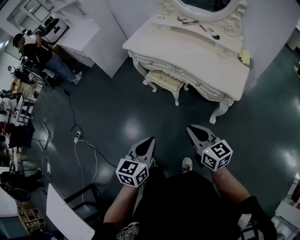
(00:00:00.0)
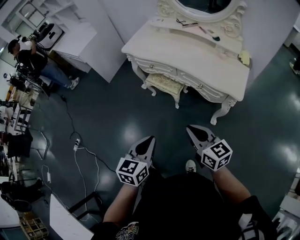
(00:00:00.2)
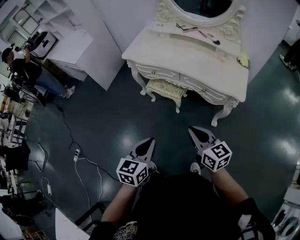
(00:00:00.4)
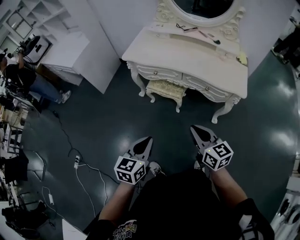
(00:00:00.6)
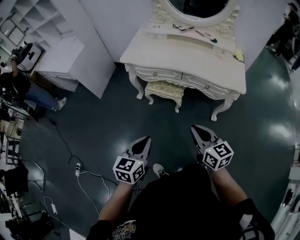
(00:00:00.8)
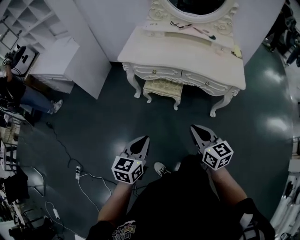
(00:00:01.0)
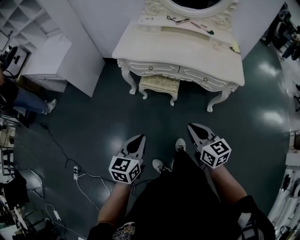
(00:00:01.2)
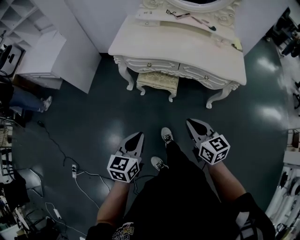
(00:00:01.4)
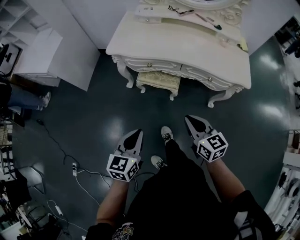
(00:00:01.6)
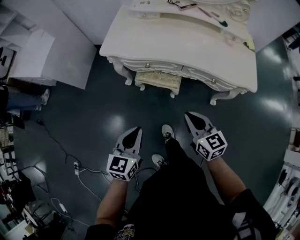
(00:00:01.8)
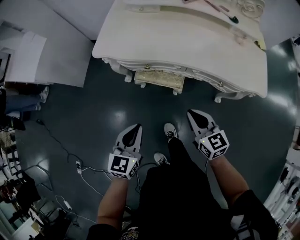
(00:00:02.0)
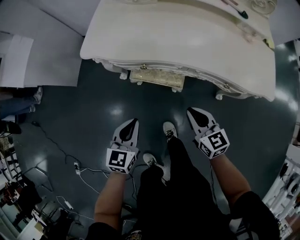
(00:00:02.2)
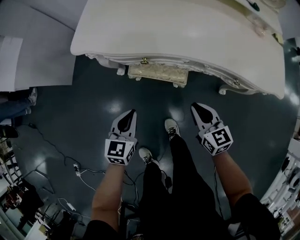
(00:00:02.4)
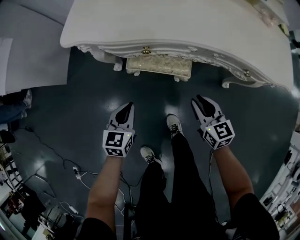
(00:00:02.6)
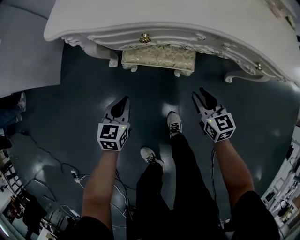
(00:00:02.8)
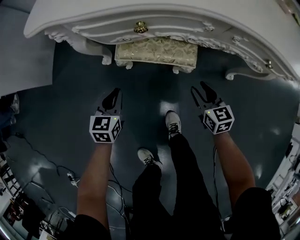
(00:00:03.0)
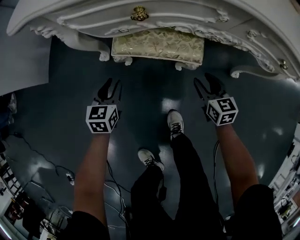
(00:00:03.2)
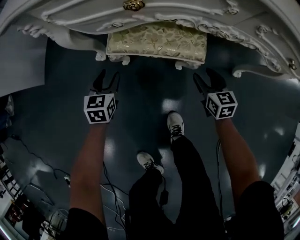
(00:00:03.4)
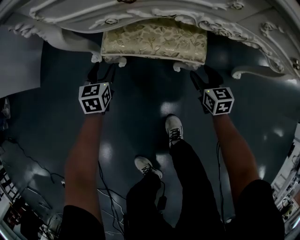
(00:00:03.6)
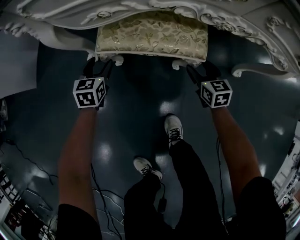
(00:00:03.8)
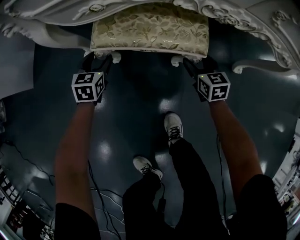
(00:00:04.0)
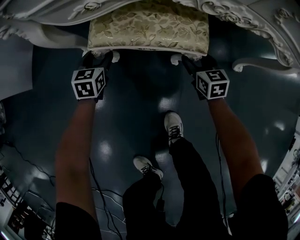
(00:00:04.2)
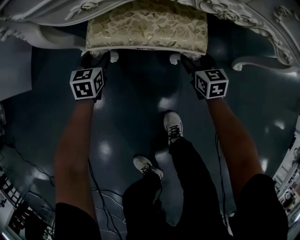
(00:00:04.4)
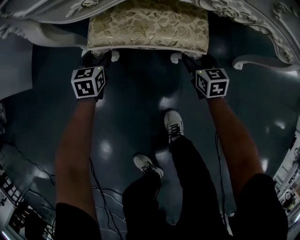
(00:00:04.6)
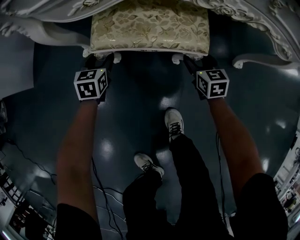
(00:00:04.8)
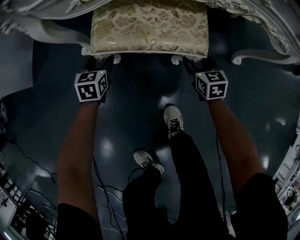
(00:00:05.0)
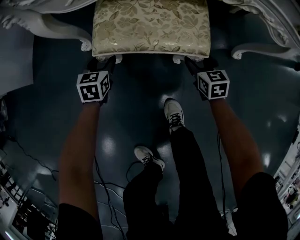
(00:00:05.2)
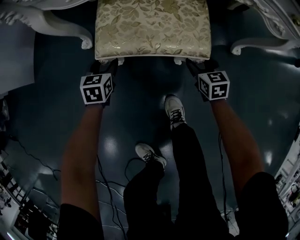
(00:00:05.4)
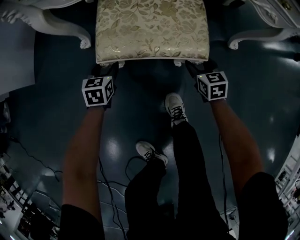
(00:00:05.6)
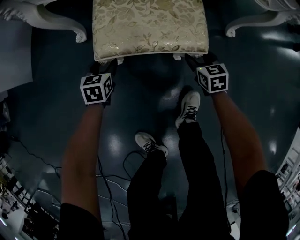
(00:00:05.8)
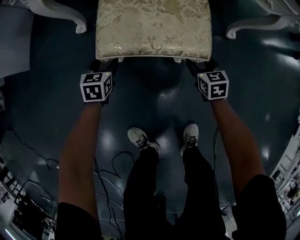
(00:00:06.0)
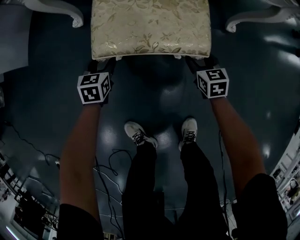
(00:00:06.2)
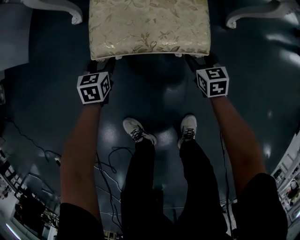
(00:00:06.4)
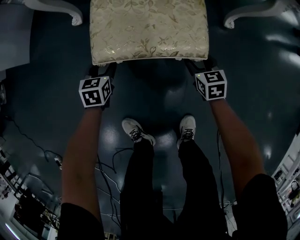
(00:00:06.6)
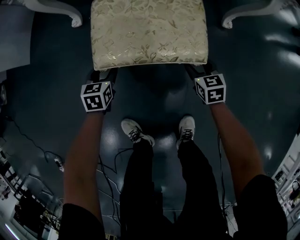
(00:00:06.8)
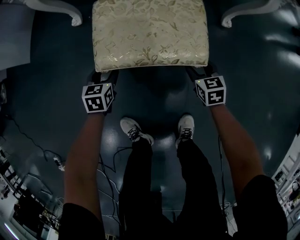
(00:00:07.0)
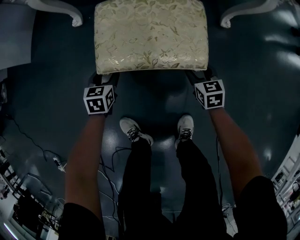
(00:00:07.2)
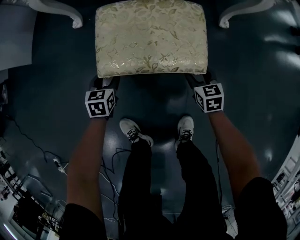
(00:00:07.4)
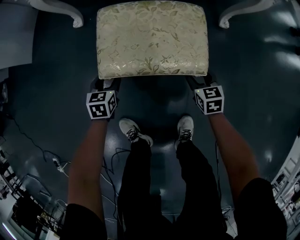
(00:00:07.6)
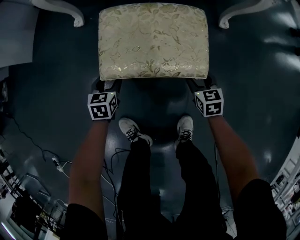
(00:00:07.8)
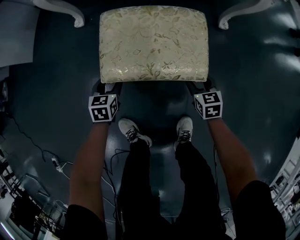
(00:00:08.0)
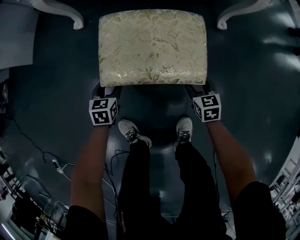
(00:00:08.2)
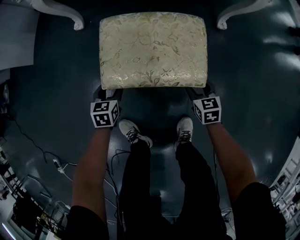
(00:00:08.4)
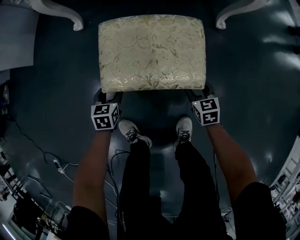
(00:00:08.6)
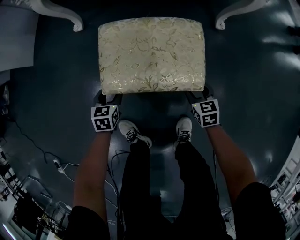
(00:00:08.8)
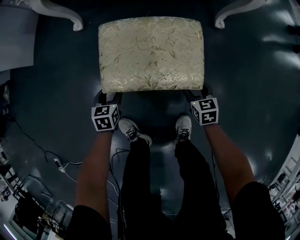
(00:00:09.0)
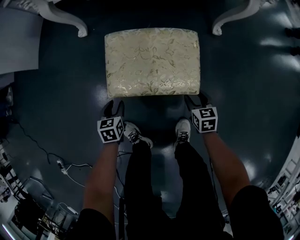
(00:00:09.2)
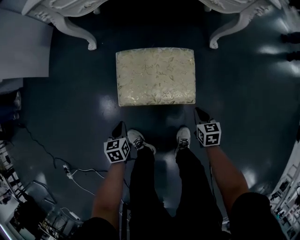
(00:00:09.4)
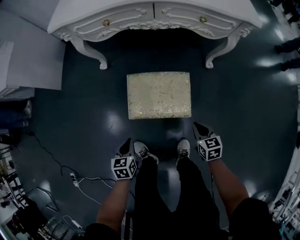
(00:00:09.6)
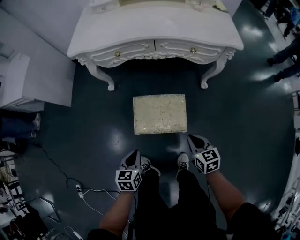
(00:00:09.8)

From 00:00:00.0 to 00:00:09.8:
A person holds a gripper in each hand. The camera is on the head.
From 00:00:00.0 to 00:00:01.4: The right gripper heads to the left, covering some 25 cm, and turns by about 30 degrees. Meanwhile the left gripper travels to the left and forward by some 30 cm.
From 00:00:01.4 to 00:00:02.8: The two grippers go roughly 50 cm downward and forward. The right gripper opens up.
From 00:00:02.8 to 00:00:04.2: The grippers both shift downward and forward by some 30 cm. The right gripper opens, while the left gripper opens its fingers.
From 00:00:04.2 to 00:00:05.6: There are only small adjustments of the grippers.
From 00:00:05.6 to 00:00:07.0: Neither gripper changes place.
From 00:00:07.0 to 00:00:08.4: Both grippers stay put.
From 00:00:08.4 to 00:00:09.8: The two grippers go approximately 40 cm upward. The right gripper closes up; the left gripper closes.

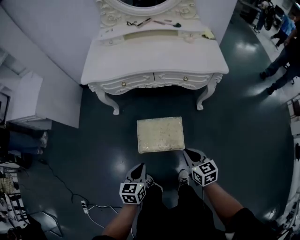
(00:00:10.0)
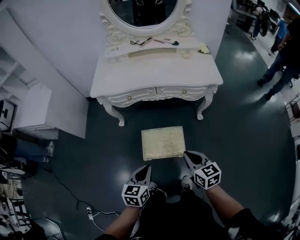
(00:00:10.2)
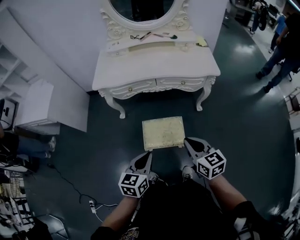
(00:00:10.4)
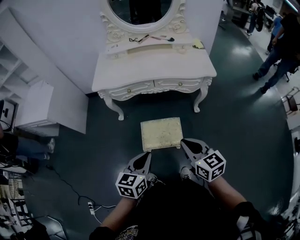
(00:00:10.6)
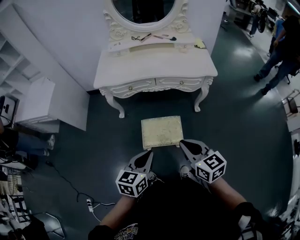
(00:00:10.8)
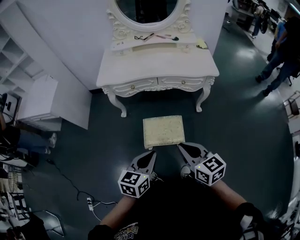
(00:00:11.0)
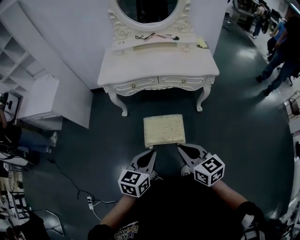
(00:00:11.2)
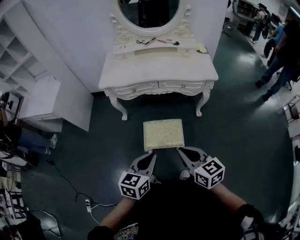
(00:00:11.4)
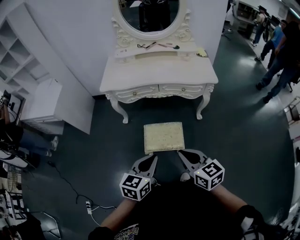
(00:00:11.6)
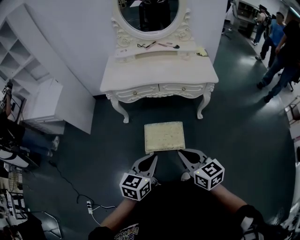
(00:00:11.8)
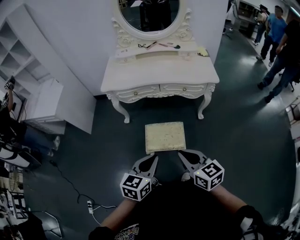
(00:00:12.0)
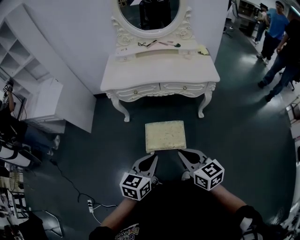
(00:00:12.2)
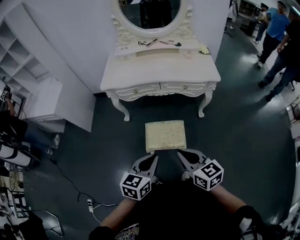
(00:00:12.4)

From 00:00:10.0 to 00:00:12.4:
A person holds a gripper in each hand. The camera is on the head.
From 00:00:10.0 to 00:00:11.2: Both grippers move upward, roughly 25 cm.
From 00:00:11.2 to 00:00:12.4: The grippers move only a little.

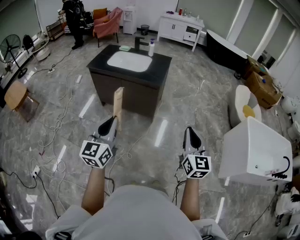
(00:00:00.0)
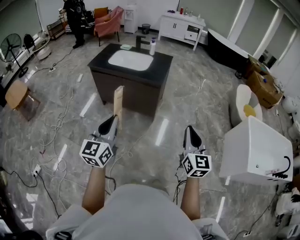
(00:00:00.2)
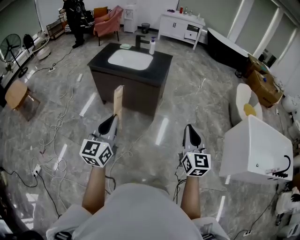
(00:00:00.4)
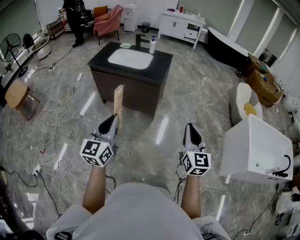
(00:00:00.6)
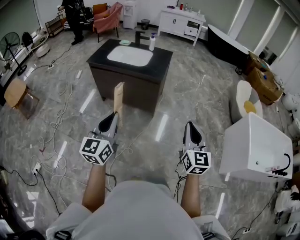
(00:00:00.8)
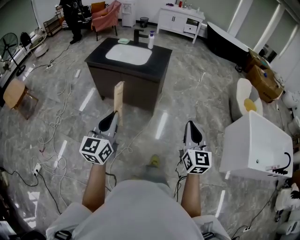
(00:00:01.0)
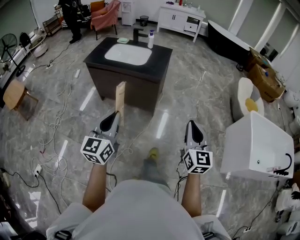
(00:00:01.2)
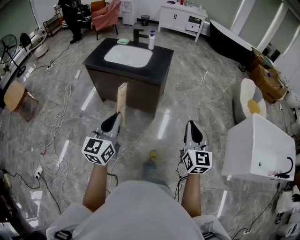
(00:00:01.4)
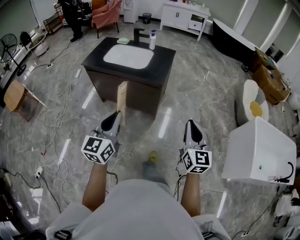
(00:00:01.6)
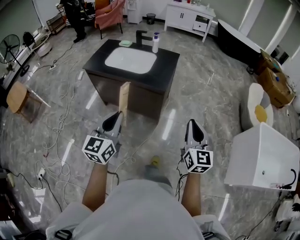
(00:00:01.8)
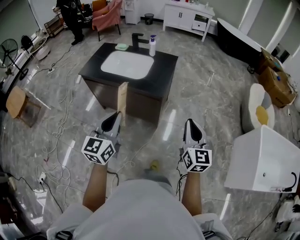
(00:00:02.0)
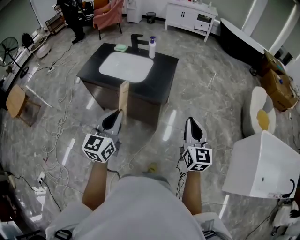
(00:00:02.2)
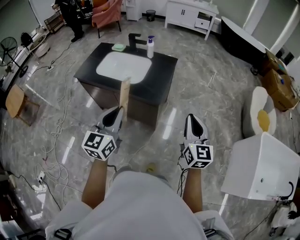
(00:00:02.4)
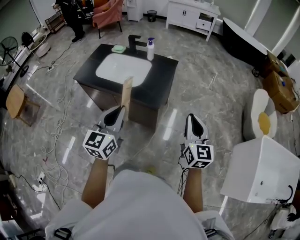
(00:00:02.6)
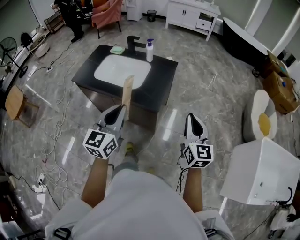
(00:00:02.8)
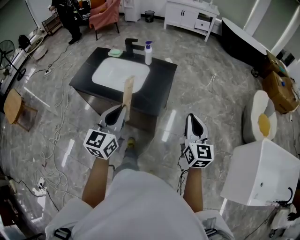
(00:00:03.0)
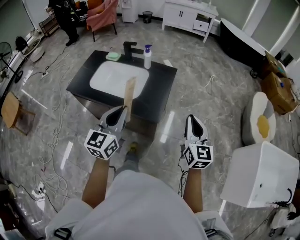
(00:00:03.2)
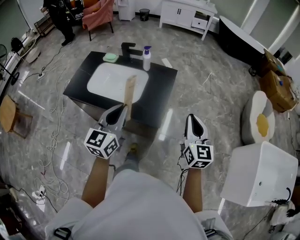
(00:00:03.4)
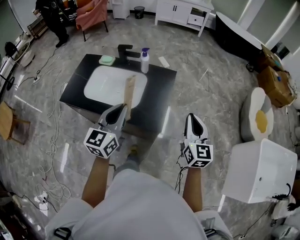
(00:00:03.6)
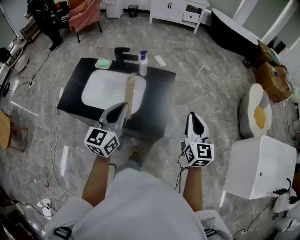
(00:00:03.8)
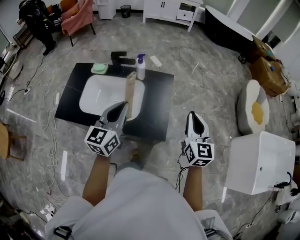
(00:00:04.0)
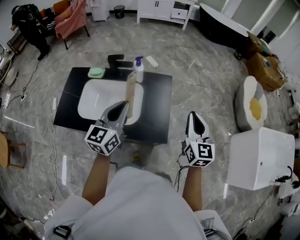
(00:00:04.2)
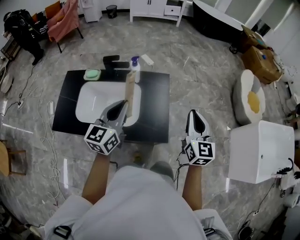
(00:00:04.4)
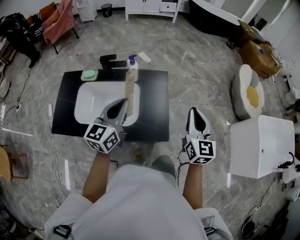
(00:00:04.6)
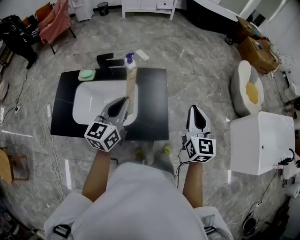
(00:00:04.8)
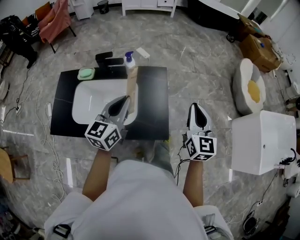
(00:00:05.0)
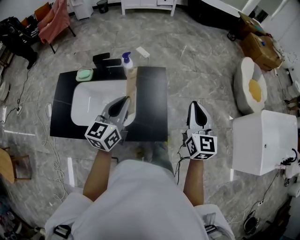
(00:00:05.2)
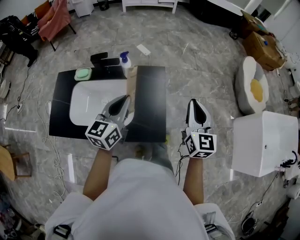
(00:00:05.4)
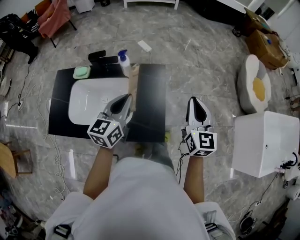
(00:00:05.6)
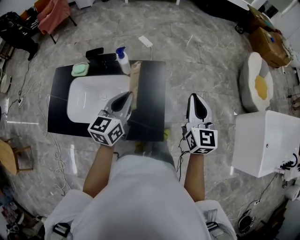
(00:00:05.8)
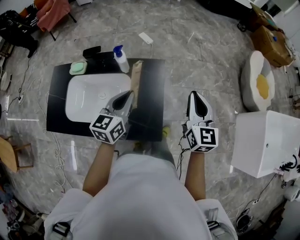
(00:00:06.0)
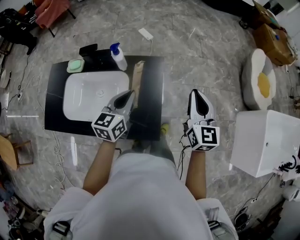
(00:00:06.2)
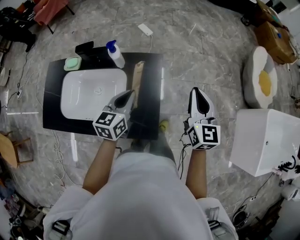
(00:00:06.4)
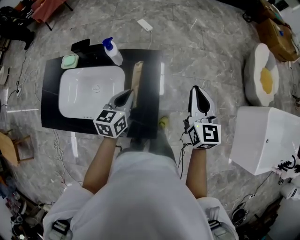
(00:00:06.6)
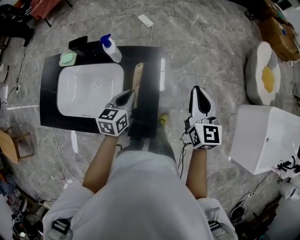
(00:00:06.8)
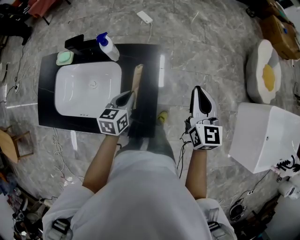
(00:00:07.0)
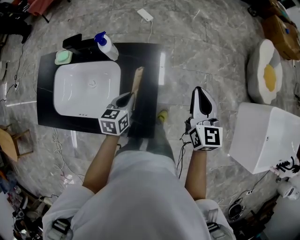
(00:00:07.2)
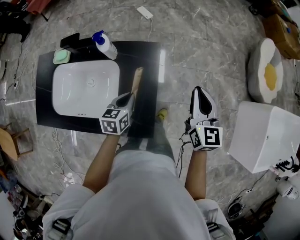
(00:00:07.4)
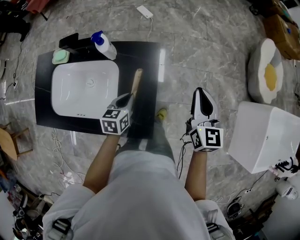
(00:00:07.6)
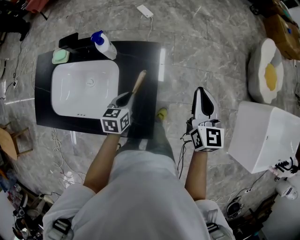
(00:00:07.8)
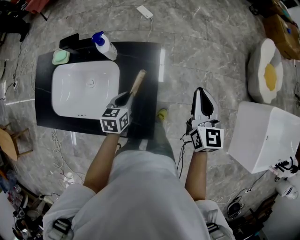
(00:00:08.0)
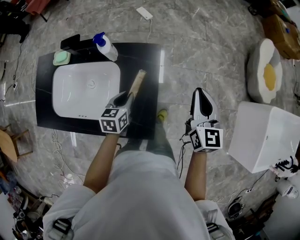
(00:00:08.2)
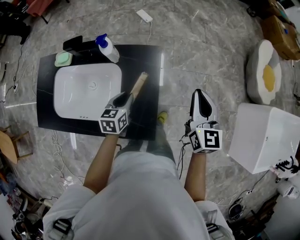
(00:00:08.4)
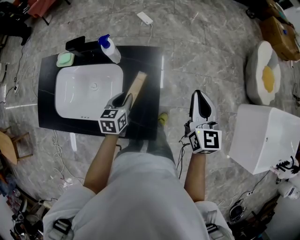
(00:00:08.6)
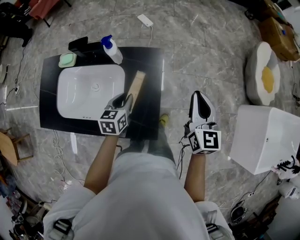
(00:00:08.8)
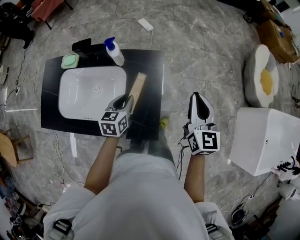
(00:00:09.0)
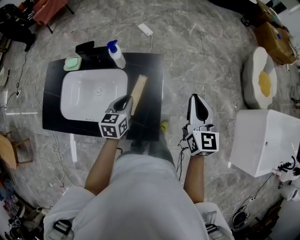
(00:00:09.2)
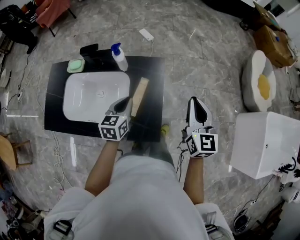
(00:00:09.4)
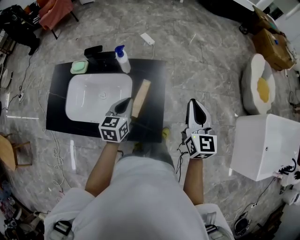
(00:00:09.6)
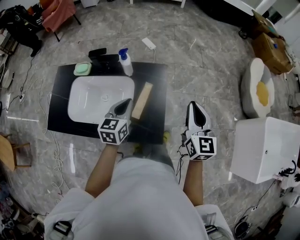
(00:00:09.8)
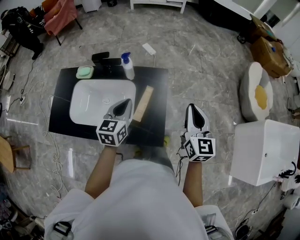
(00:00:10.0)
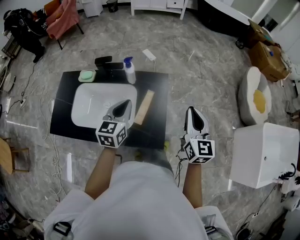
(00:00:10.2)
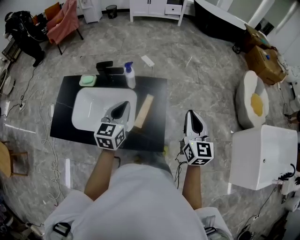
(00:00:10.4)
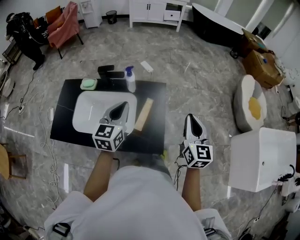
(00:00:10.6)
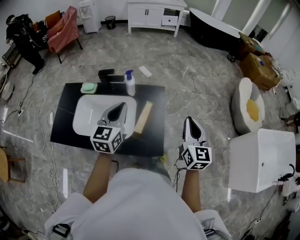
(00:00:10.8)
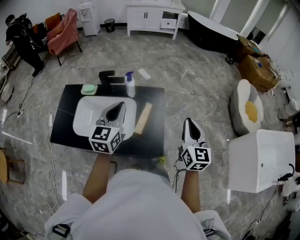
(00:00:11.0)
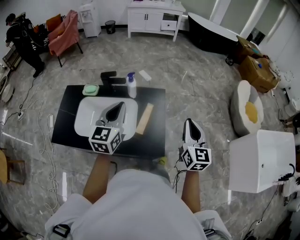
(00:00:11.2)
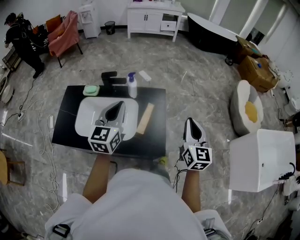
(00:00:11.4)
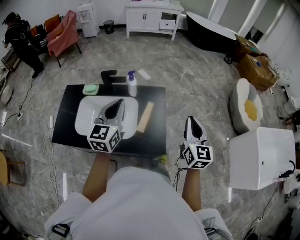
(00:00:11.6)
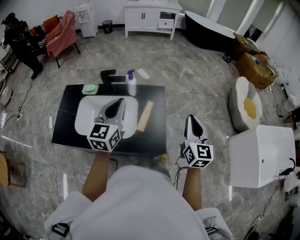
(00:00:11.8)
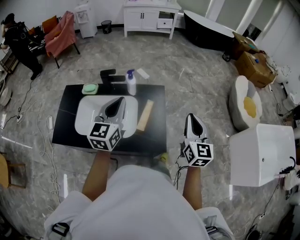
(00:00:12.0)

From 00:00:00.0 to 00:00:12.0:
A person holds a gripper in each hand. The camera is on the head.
From 00:00:00.0 to 00:00:01.6: Both grippers move forward, roughly 15 cm.
From 00:00:01.6 to 00:00:03.0: Both grippers move forward, approximately 40 cm.
From 00:00:03.0 to 00:00:04.4: The two grippers go some 30 cm forward and to the left. The left gripper changes its angle by some 20 degrees.
From 00:00:04.4 to 00:00:06.0: The right gripper travels forward by some 15 cm, while the left gripper goes about 20 cm forward, downward and to the right.
From 00:00:06.0 to 00:00:07.6: The left gripper travels downward by roughly 20 cm, and turns by approximately 30 degrees; the right gripper is displaced downward, forward and to the right by about 15 cm.
From 00:00:07.6 to 00:00:09.0: The left gripper shifts about 5 cm upward; the right gripper shifts by approximately 10 cm.
From 00:00:09.0 to 00:00:10.4: The left gripper shifts roughly 20 cm upward, and swivels some 20 degrees. Meanwhile the right gripper goes approximately 15 cm backward and upward.
From 00:00:10.4 to 00:00:12.0: The right gripper heads backward, covering approximately 5 cm, while the left gripper moves upward and backward, approximately 10 cm.
